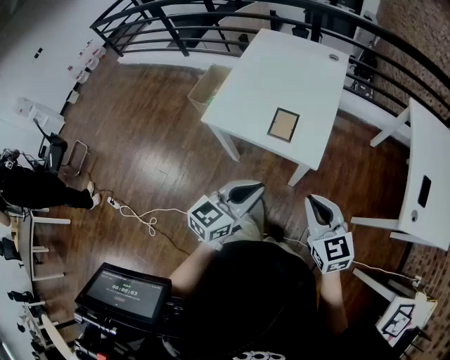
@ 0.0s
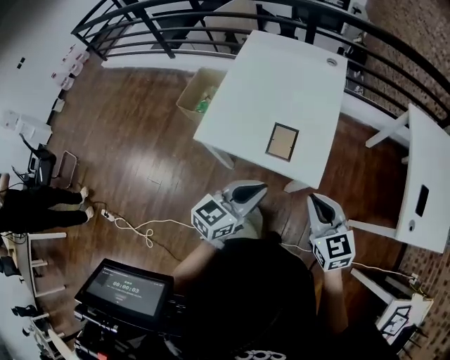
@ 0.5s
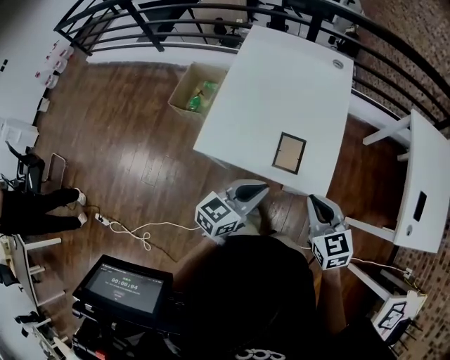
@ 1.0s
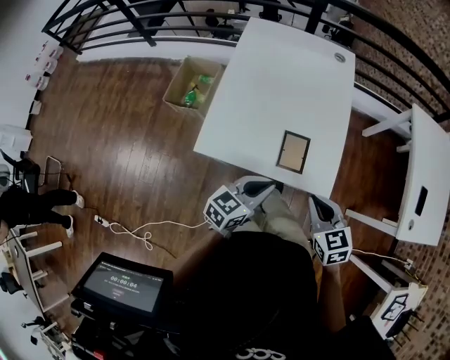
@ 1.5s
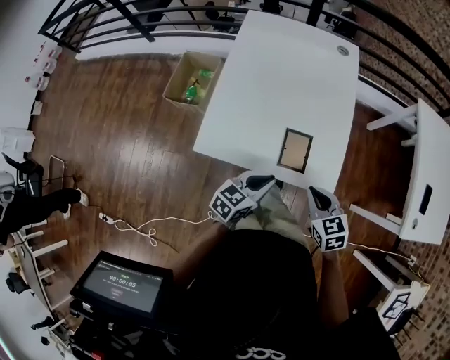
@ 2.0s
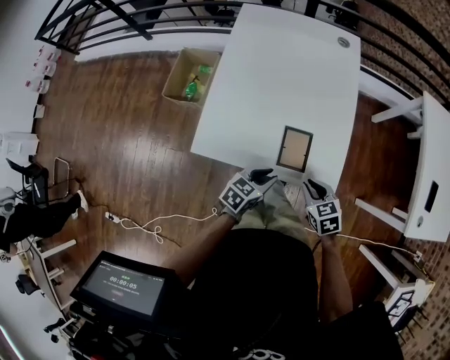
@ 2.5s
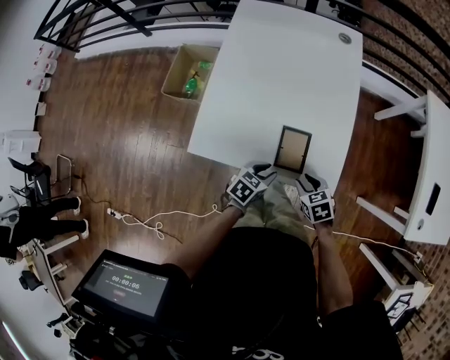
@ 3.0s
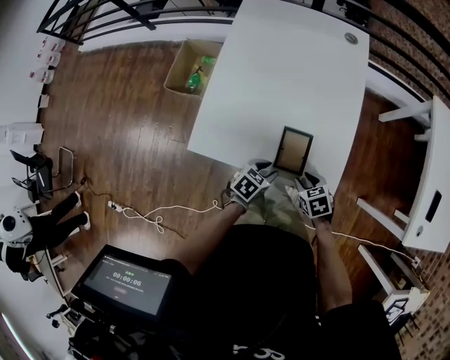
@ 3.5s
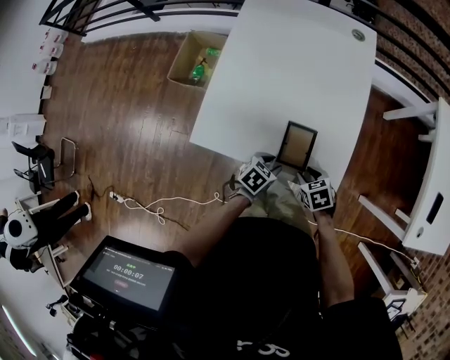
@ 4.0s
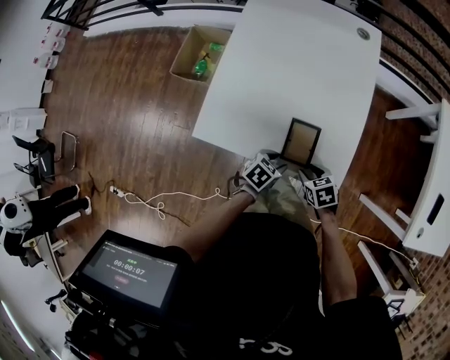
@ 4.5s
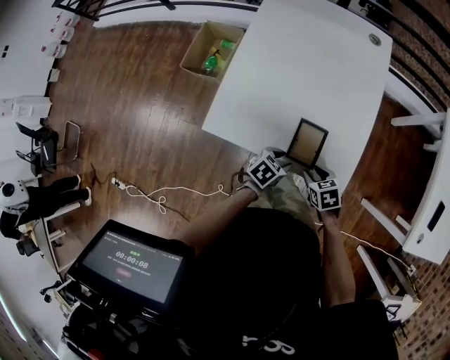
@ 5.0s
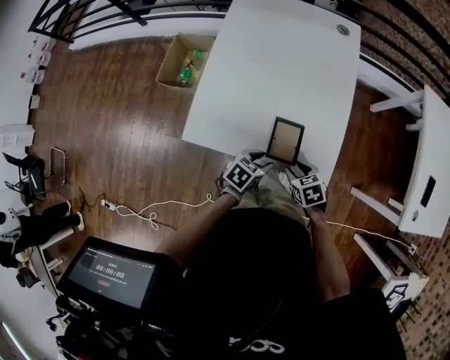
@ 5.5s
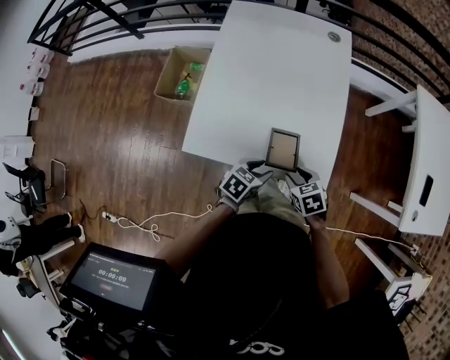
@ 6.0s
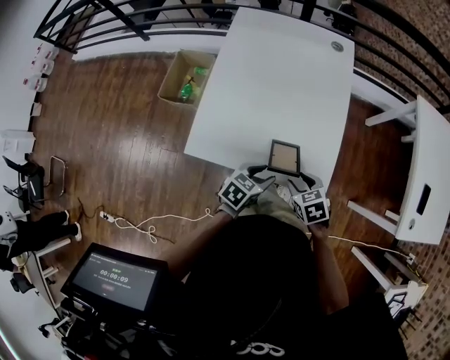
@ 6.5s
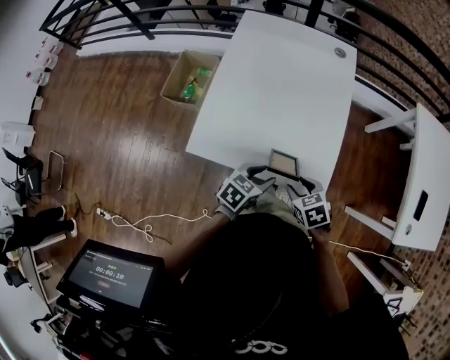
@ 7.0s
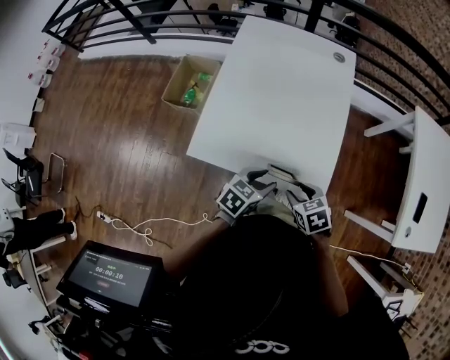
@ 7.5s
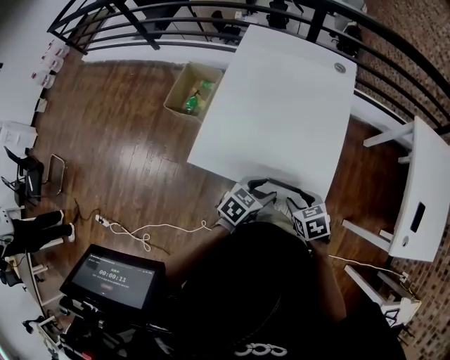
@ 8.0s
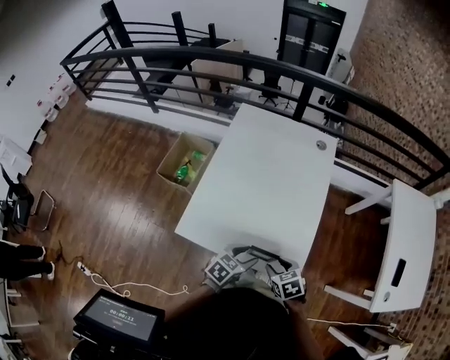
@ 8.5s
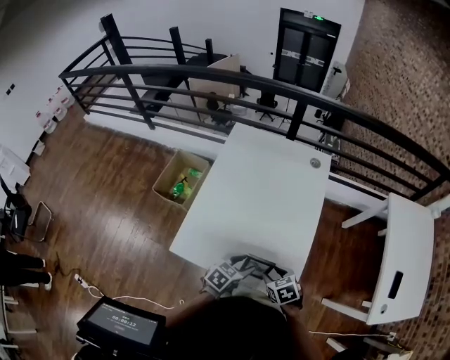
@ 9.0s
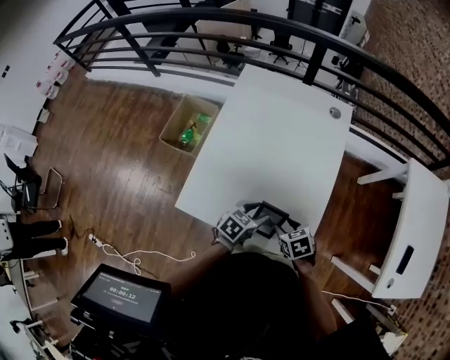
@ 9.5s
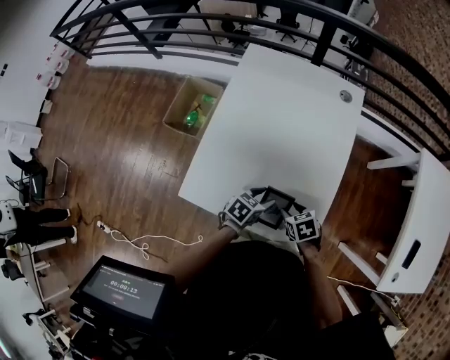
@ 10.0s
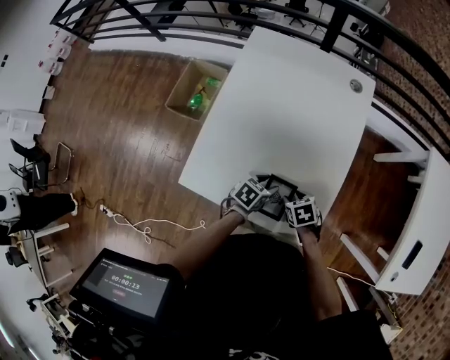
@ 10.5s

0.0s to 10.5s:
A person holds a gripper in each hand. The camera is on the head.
0.0s to 2.0s: Both grippers move forward, downward and to the left, some 25 cm. The left gripper rotates about 20 degrees. Meanwhile the right gripper swivels some 20 degrees.
2.0s to 4.0s: Both grippers move downward, roughly 15 cm. The right gripper changes its angle by some 20 degrees, and opens. The left gripper swivels about 30 degrees, and opens its fingers.
4.0s to 6.5s: Both grippers move upward, approximately 10 cm.
6.5s to 8.5s: The grippers stay close to where they were, moving slightly.
8.5s to 10.5s: Both grippers move downward, approximately 10 cm.

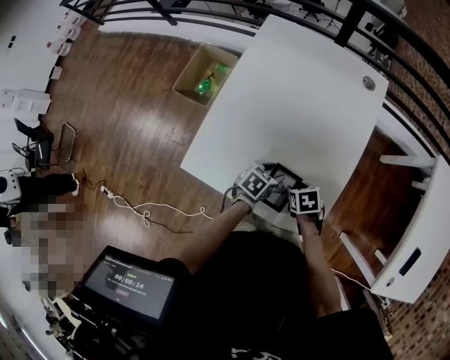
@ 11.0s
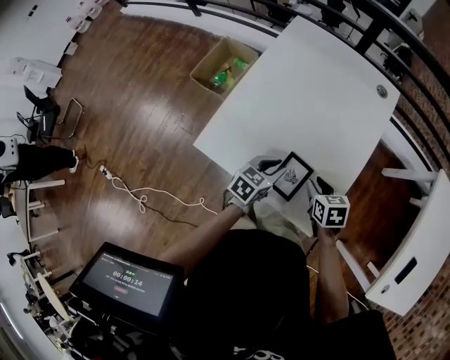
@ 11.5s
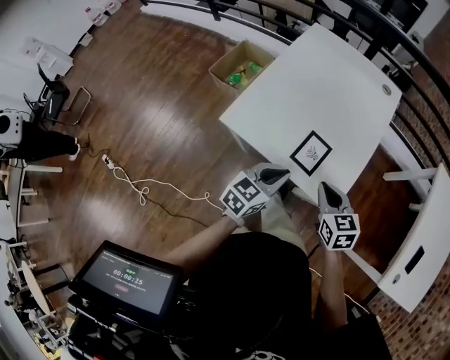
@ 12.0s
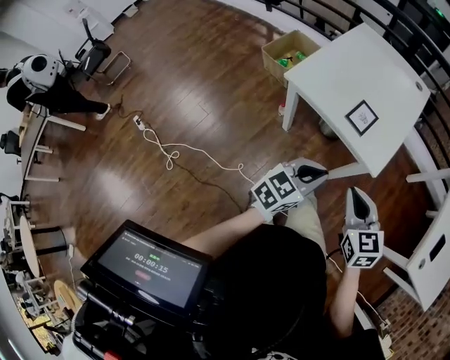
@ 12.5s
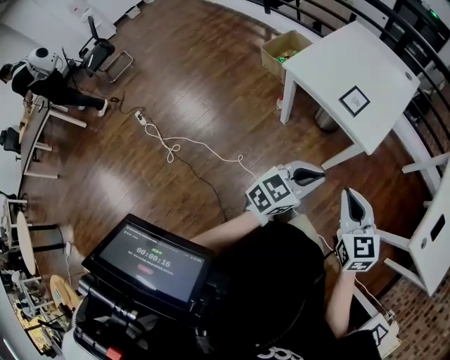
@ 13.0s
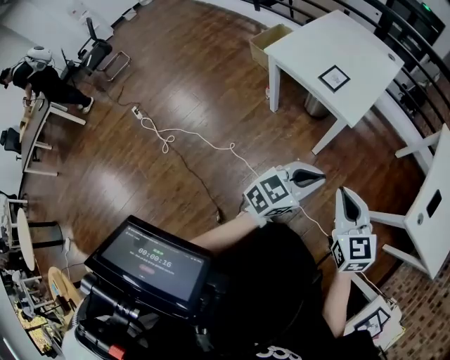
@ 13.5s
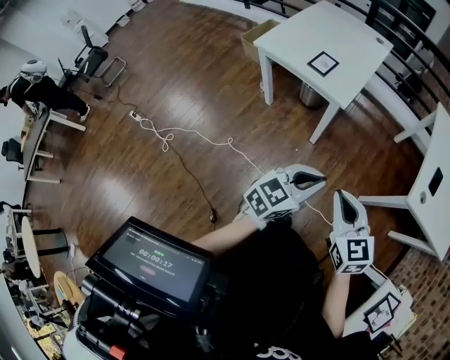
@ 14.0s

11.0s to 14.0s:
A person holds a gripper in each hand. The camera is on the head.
11.0s to 12.5s: The right gripper moves roughly 40 cm, points its fingers roughly 40 degrees further upward, and closes up; the left gripper shifts by approximately 50 cm, tips its fingers upward by roughly 30 degrees, and closes.
12.5s to 14.0s: Both grippers move backward and to the right, about 30 cm.

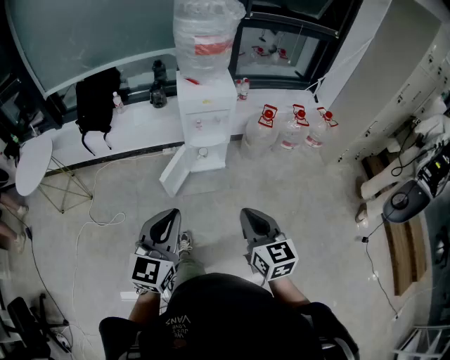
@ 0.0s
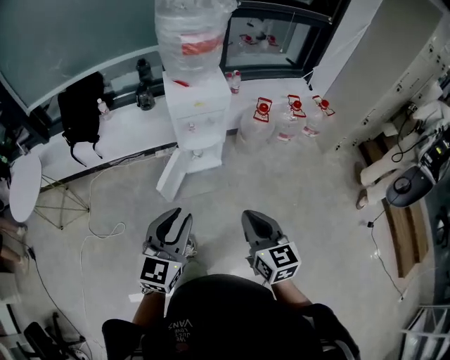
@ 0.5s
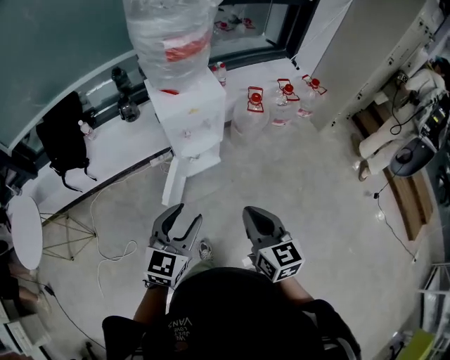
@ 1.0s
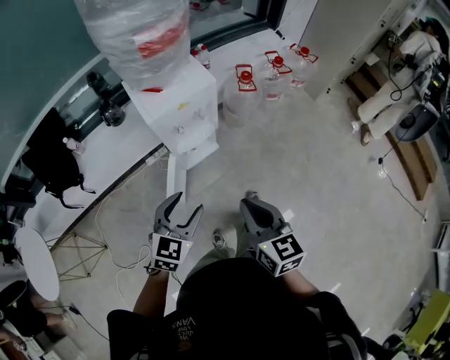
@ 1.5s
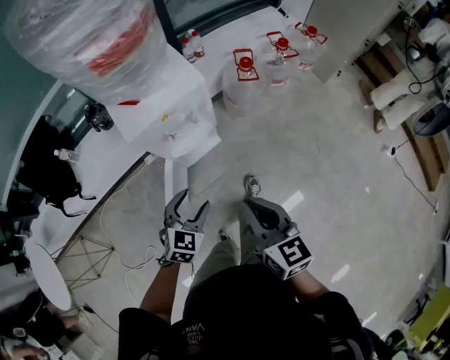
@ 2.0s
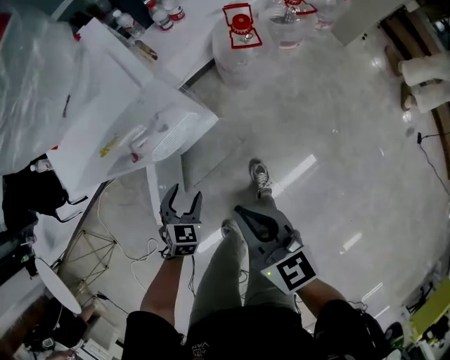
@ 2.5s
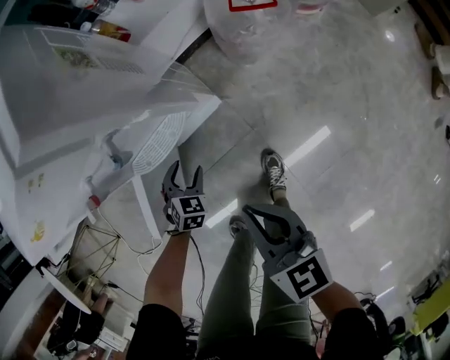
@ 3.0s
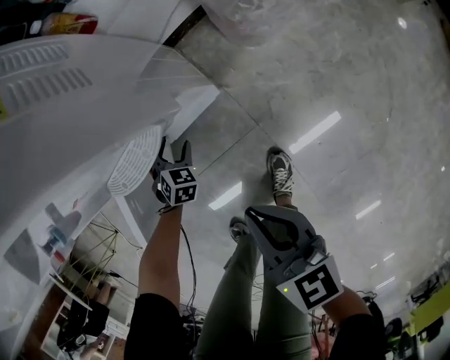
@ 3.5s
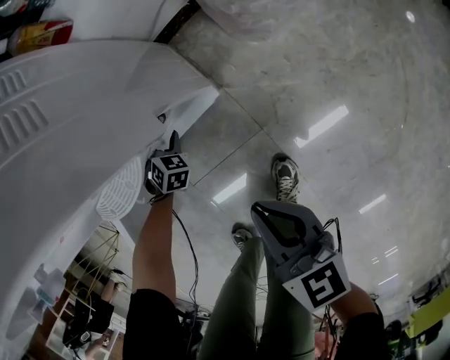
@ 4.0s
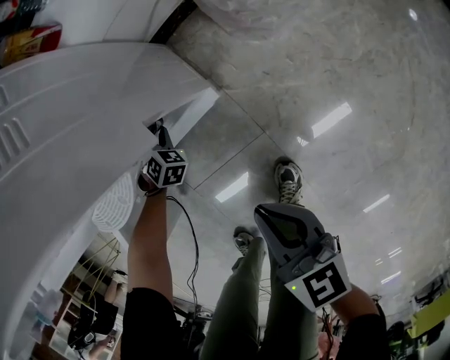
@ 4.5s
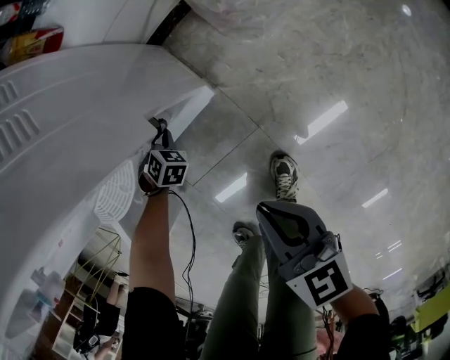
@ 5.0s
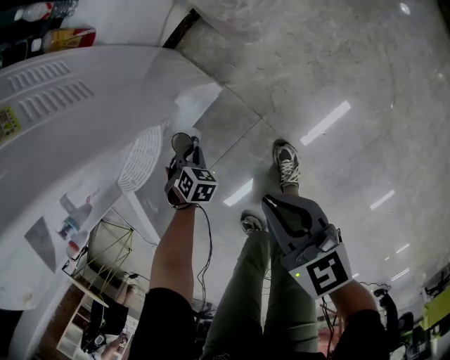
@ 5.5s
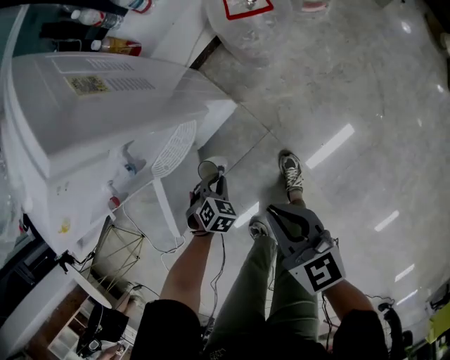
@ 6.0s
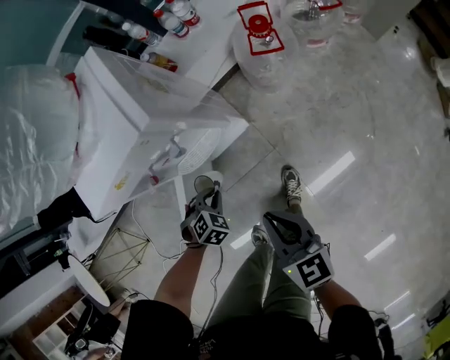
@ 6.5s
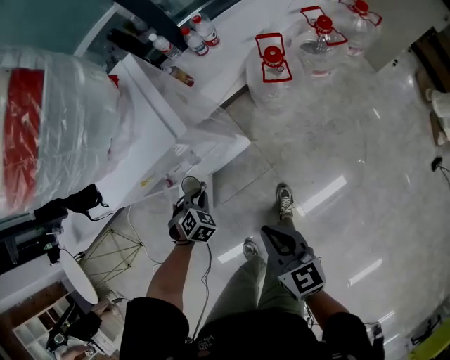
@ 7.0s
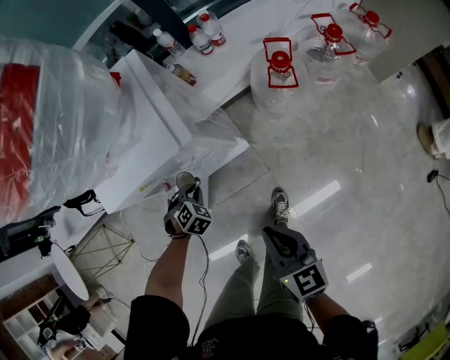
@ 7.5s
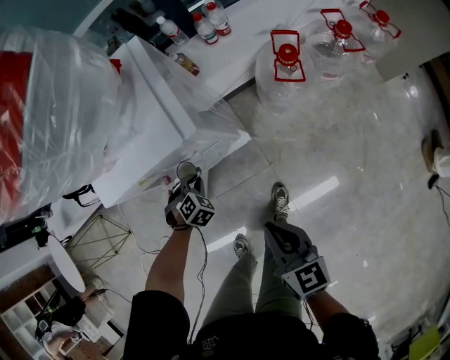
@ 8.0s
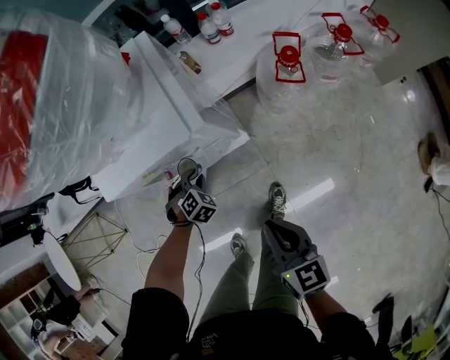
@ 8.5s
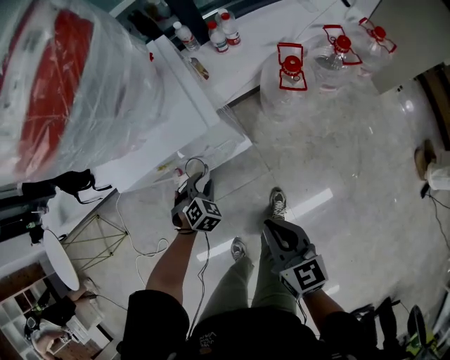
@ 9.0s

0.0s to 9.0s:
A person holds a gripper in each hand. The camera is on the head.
0.0s to 2.0s: The left gripper is displaced forward and downward by approximately 50 cm, points its fingers approximately 30 degrees further downward, and opens its fingers; the right gripper is displaced forward by roughly 30 cm, and swivels about 20 degrees.
2.0s to 4.5s: Both grippers move downward, about 60 cm. The right gripper rotates roughly 20 degrees, while the left gripper turns by some 50 degrees, and closes.
4.5s to 7.0s: Both grippers move upward, approximately 40 cm.
7.0s to 9.0s: The grippers make only small movements.

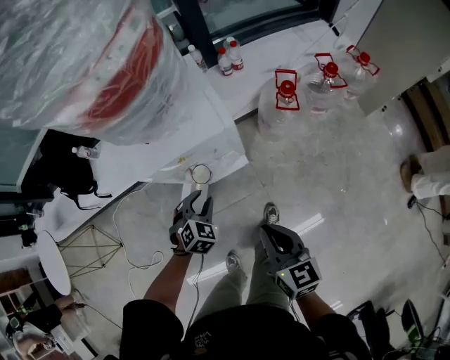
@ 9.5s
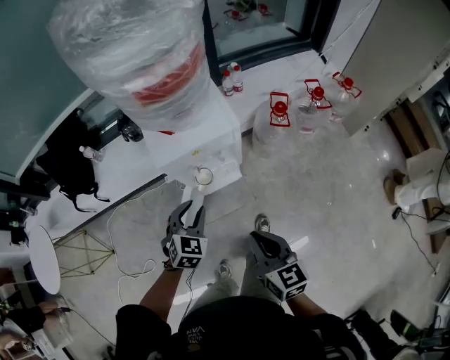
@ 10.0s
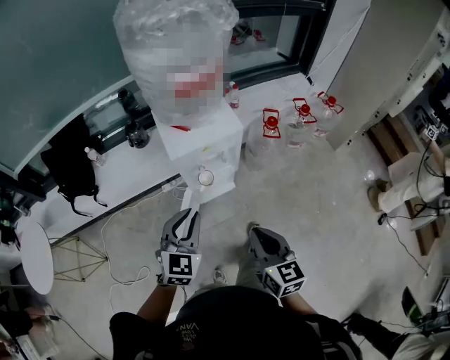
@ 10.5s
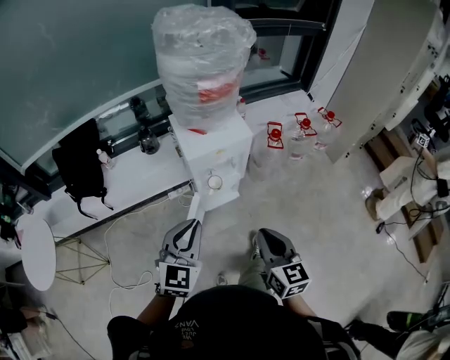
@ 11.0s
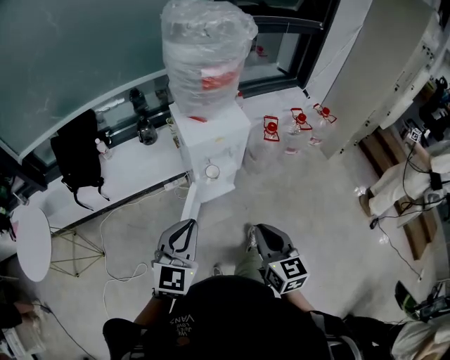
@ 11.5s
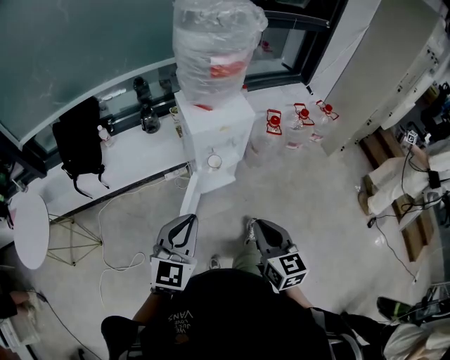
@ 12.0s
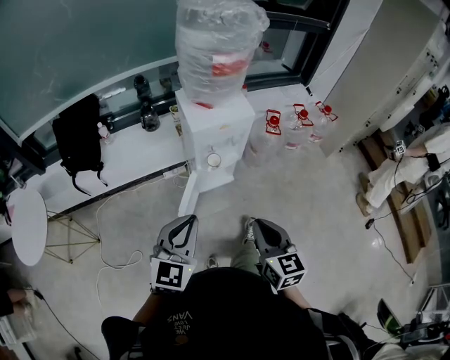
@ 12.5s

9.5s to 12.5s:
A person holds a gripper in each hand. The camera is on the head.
9.5s to 11.0s: The right gripper moves upward, backward and to the left, approximately 30 cm. The left gripper is displaced upward and backward by roughly 40 cm, tilts its fingers roughly 40 degrees upward, and closes its fingers.
11.0s to 12.5s: Both grippers move backward, about 10 cm.
